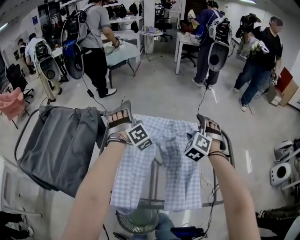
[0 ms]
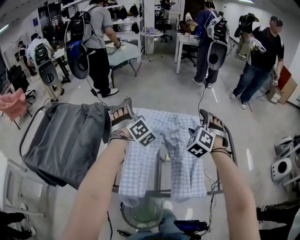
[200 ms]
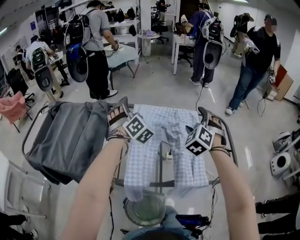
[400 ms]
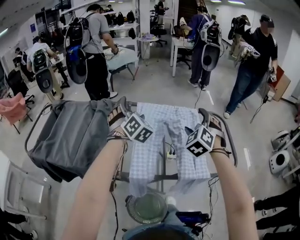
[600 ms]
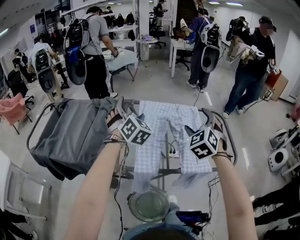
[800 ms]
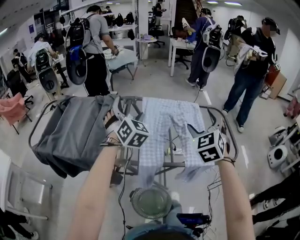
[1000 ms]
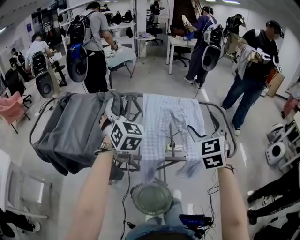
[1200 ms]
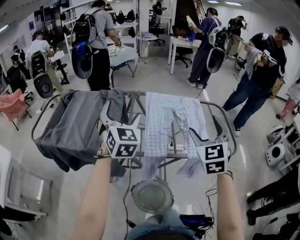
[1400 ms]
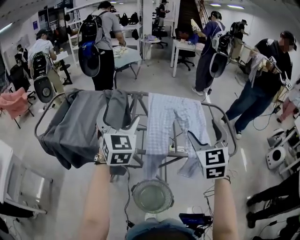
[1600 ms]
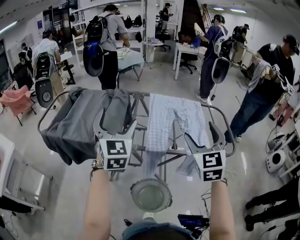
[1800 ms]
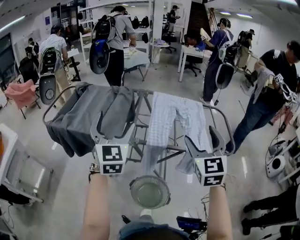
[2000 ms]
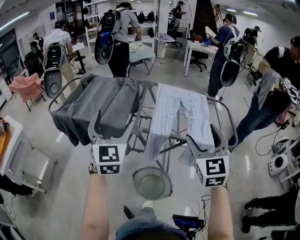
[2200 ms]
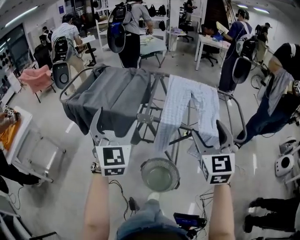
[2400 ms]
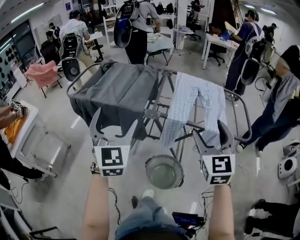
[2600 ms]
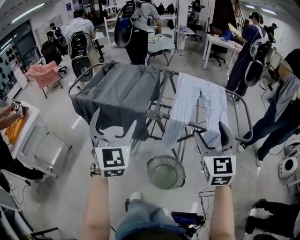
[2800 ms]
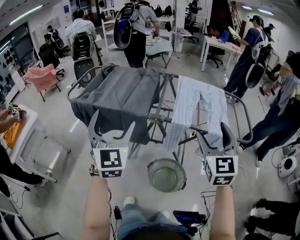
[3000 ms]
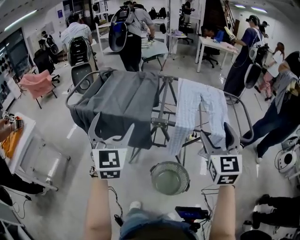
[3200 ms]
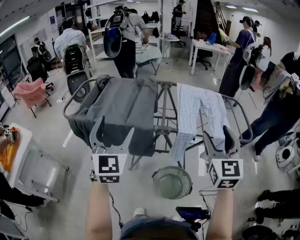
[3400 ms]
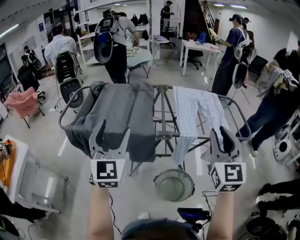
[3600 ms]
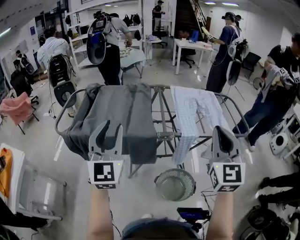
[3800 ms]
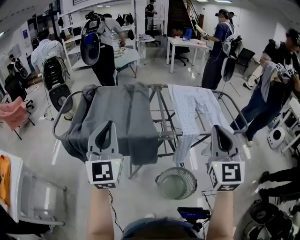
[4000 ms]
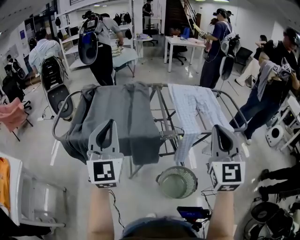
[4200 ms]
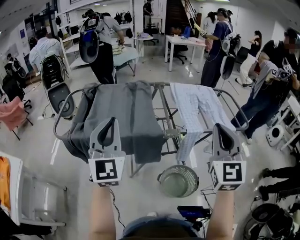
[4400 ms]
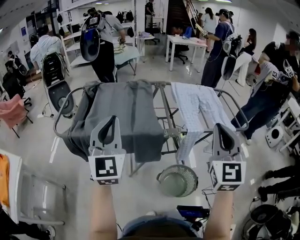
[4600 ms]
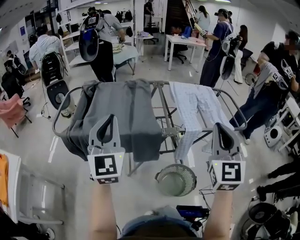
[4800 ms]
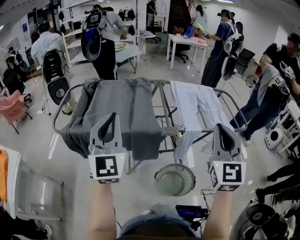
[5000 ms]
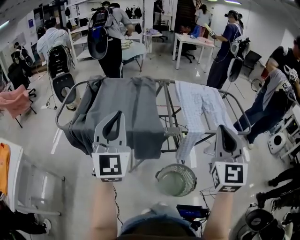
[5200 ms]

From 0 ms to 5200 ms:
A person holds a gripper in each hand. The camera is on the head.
From 0 ms to 1800 ms: The two grippers travel together, backward and to the left, some 40 cm. Both grippers move upward, some 15 cm. The left gripper rotates around the line of its fingers by some 50 degrees, counterclockwise from behind; the right gripper rotates around the line of its fingers by about 40 degrees, clockwise from behind.
From 1800 ms to 3400 ms: Both grippers travel together to the left and backward, about 20 cm.
From 3400 ms to 5200 ms: Both grippers move to the left, approximately 5 cm. The left gripper closes up, while the right gripper closes.

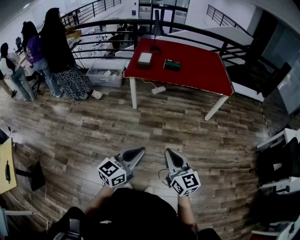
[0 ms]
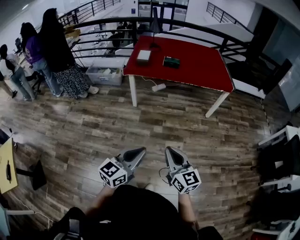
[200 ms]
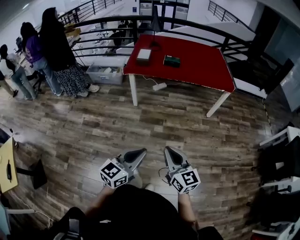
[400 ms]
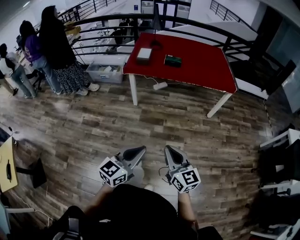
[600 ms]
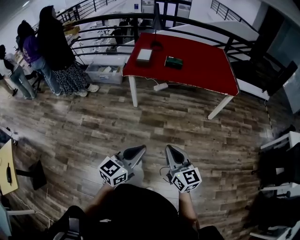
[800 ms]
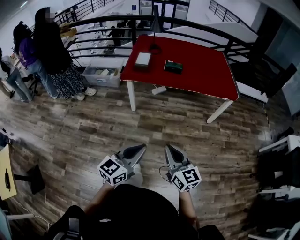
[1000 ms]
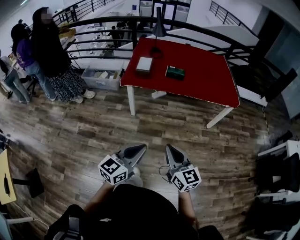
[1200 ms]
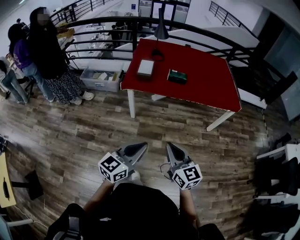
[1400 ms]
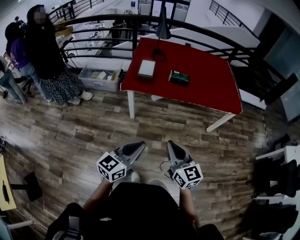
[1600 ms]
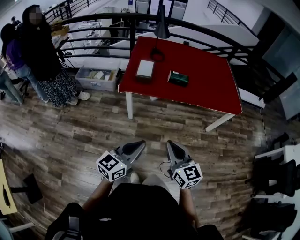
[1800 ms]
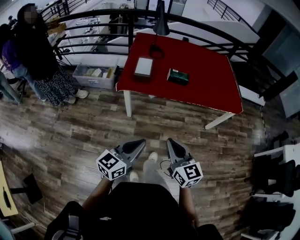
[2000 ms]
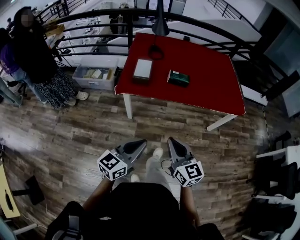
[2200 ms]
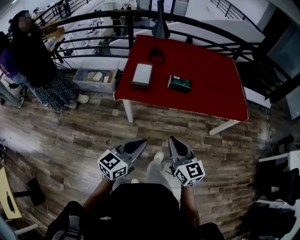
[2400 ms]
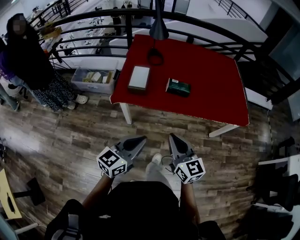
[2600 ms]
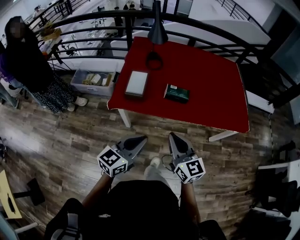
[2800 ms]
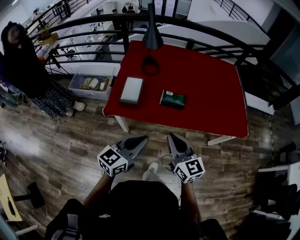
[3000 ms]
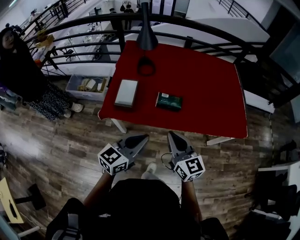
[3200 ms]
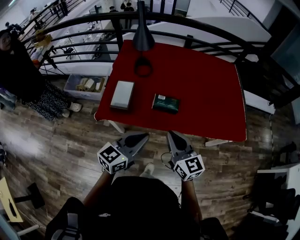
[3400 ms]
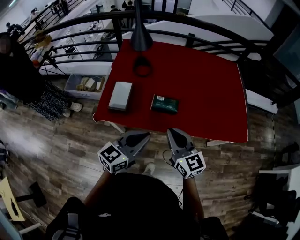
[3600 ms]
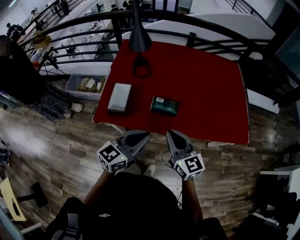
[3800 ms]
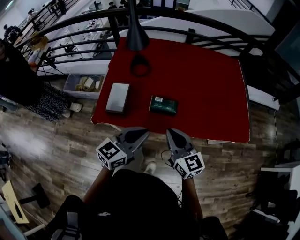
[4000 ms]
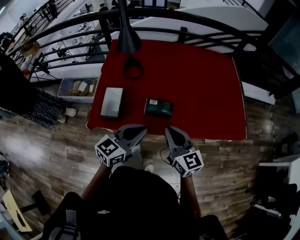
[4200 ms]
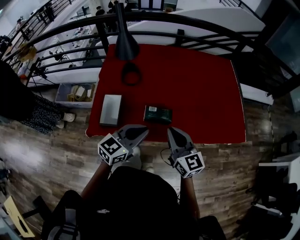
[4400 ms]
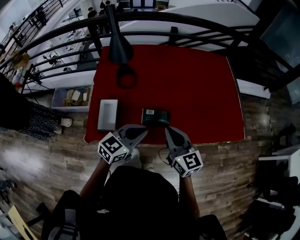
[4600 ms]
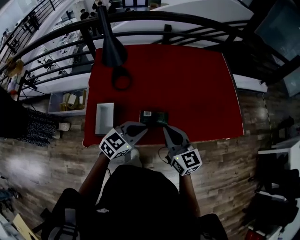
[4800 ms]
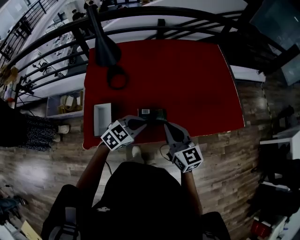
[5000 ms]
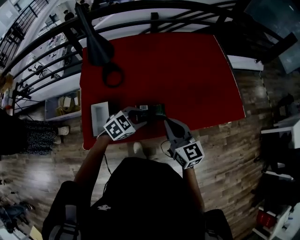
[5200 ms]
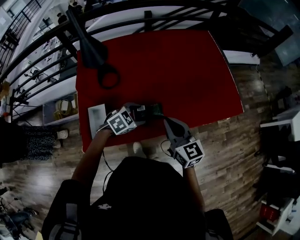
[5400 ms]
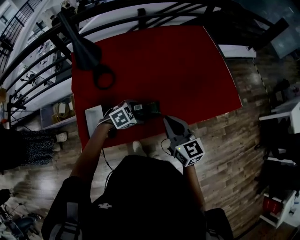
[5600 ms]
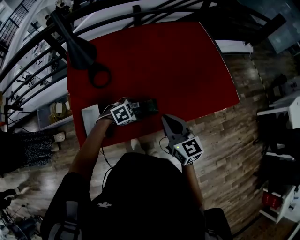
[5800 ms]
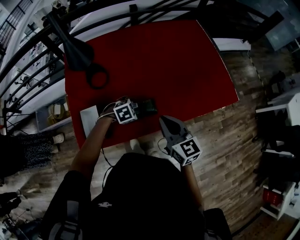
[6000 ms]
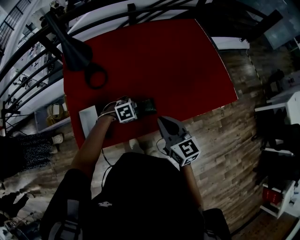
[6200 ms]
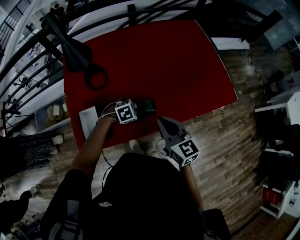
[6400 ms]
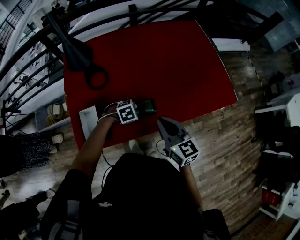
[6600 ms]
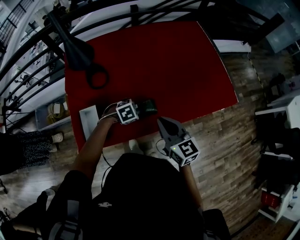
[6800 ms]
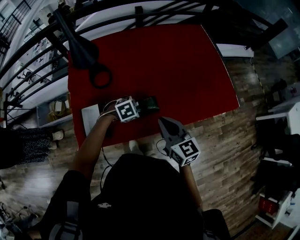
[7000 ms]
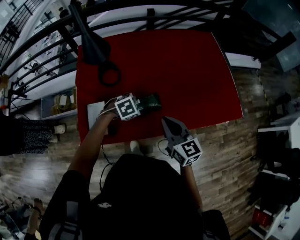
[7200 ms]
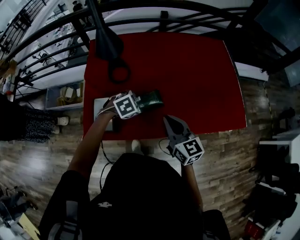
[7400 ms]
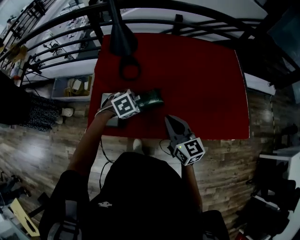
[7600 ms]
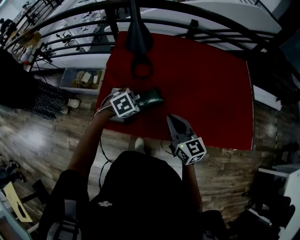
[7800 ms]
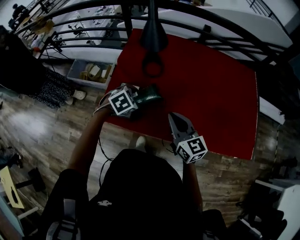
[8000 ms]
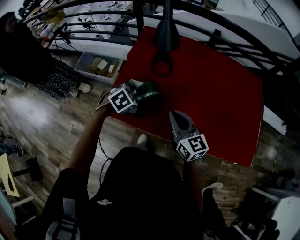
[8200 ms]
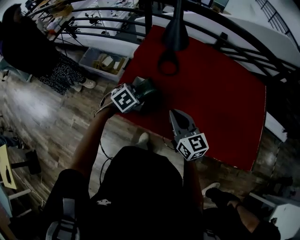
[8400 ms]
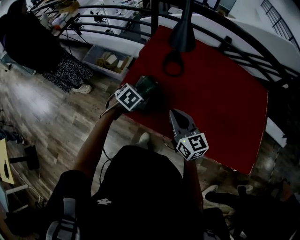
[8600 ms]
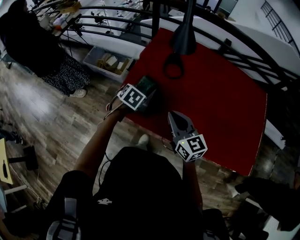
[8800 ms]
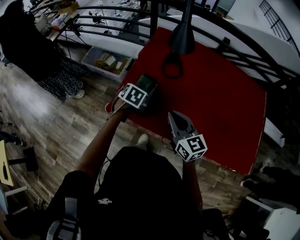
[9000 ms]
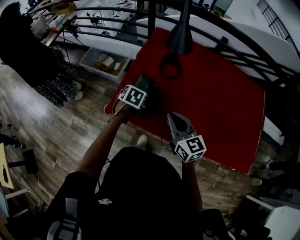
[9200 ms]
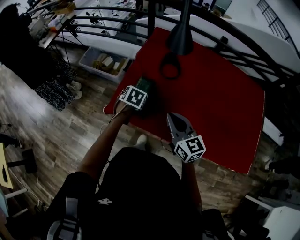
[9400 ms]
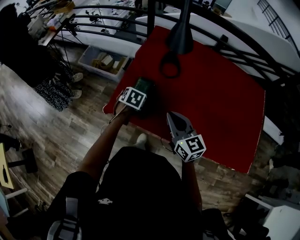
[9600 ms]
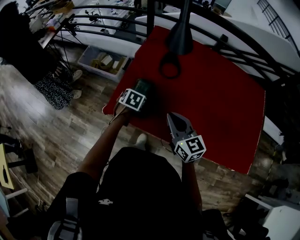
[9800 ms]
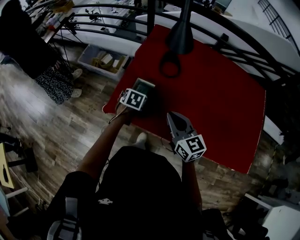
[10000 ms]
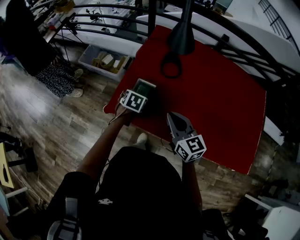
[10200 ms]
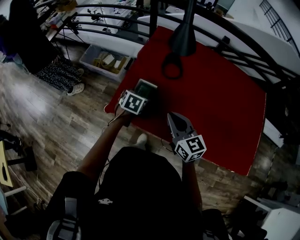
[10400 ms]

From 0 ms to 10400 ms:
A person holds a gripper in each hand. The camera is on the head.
From 0 ms to 1400 ms: The two grippers go about 30 cm forward.
From 1400 ms to 3000 ms: The grippers both shift forward by some 40 cm.
From 3000 ms to 4400 ms: The grippers both shift forward by approximately 20 cm.
From 4400 ms to 6000 ms: The left gripper heads downward, covering about 25 cm, tilts its fingers approximately 50 degrees downward, and opens its fingers. The right gripper ends up roughly 10 cm from where it was.
From 6000 ms to 7400 ms: The left gripper is displaced upward and to the left by about 10 cm.
From 7400 ms to 9000 ms: The right gripper moves roughly 15 cm, and turns by some 30 degrees; the left gripper ends up approximately 25 cm from where it was, and rotates around the line of its fingers by roughly 60 degrees, counterclockwise from behind.
From 9000 ms to 10400 ms: The grippers make only small movements.

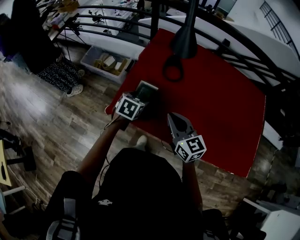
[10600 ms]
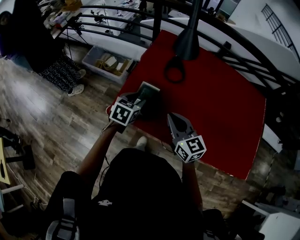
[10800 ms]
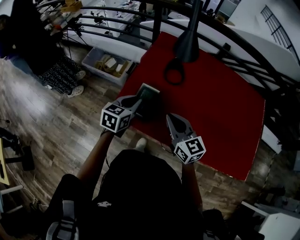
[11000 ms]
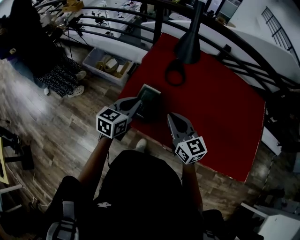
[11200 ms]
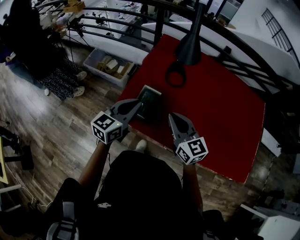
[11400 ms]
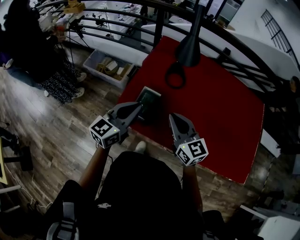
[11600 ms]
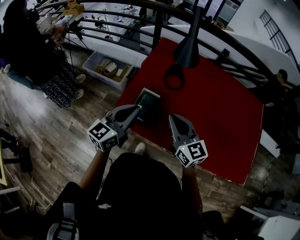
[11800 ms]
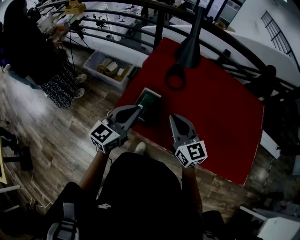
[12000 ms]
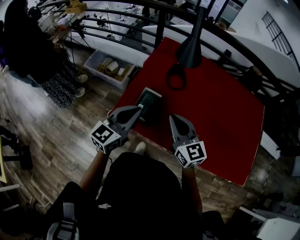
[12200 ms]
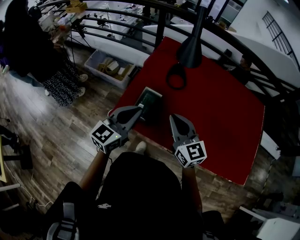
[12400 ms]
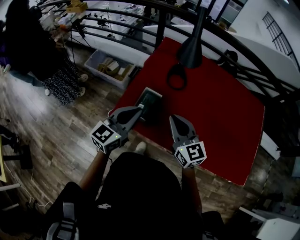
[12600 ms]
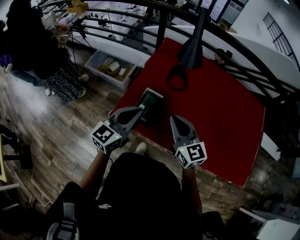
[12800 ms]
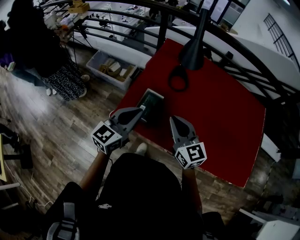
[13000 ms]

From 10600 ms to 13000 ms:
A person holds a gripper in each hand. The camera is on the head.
From 10600 ms to 11800 ms: The right gripper goes about 5 cm upward, while the left gripper shifts about 20 cm upward, points its fingers some 50 degrees further upward, and closes.
From 11800 ms to 13000 ms: The grippers stay close to where they were, moving slightly.

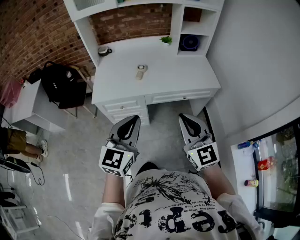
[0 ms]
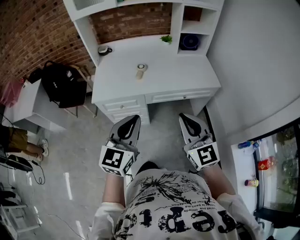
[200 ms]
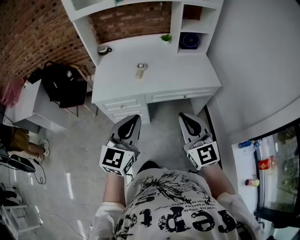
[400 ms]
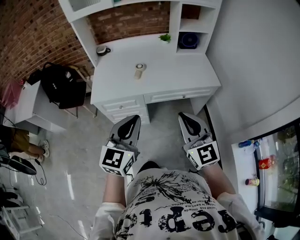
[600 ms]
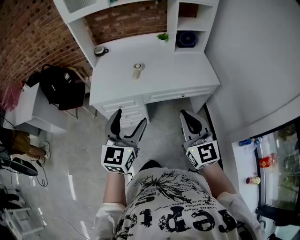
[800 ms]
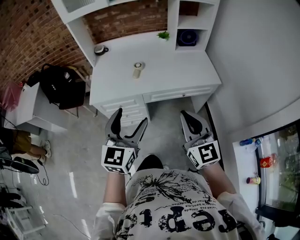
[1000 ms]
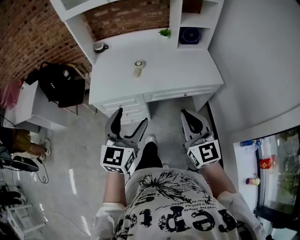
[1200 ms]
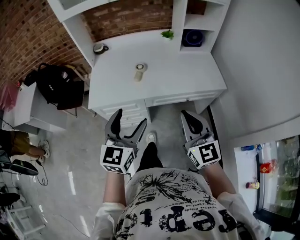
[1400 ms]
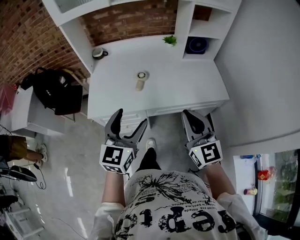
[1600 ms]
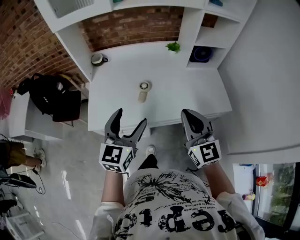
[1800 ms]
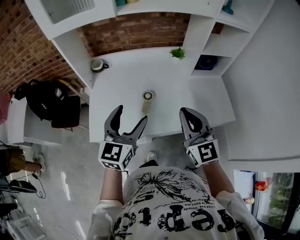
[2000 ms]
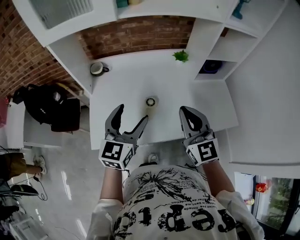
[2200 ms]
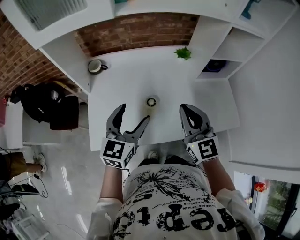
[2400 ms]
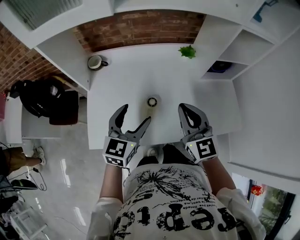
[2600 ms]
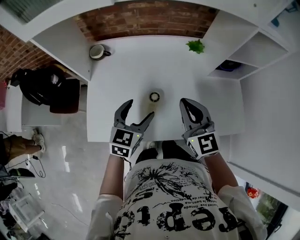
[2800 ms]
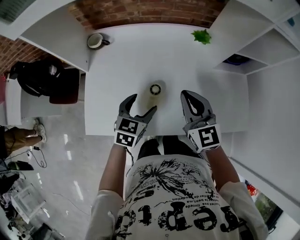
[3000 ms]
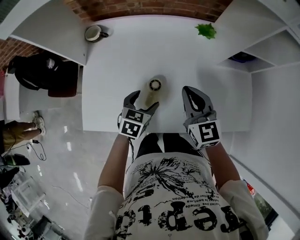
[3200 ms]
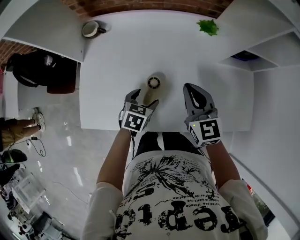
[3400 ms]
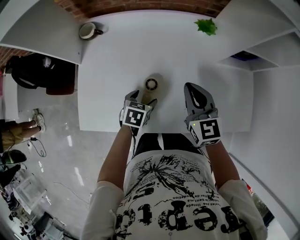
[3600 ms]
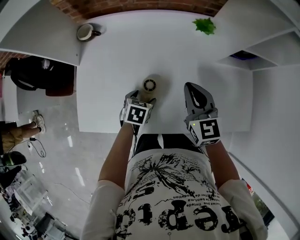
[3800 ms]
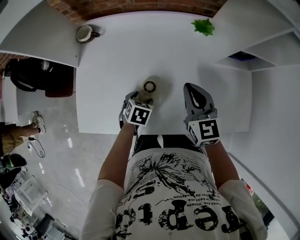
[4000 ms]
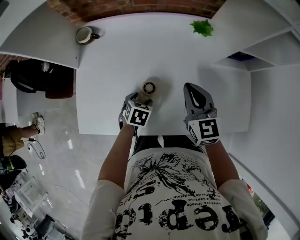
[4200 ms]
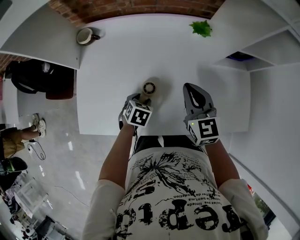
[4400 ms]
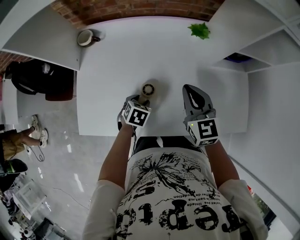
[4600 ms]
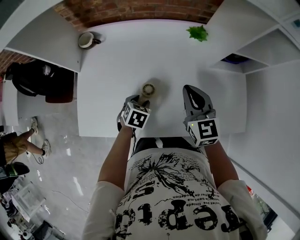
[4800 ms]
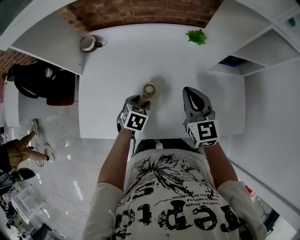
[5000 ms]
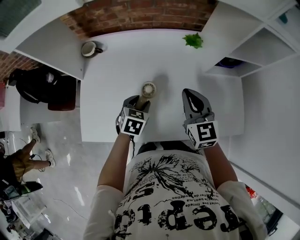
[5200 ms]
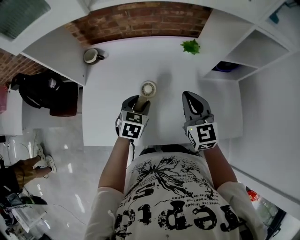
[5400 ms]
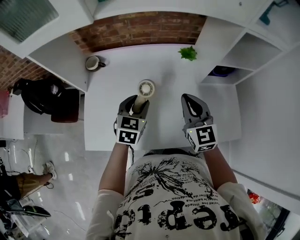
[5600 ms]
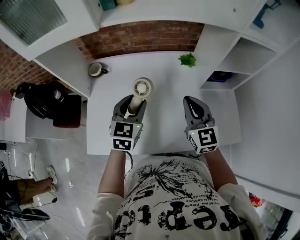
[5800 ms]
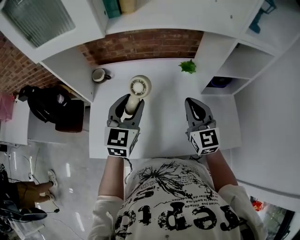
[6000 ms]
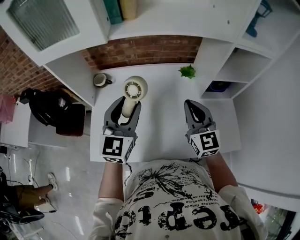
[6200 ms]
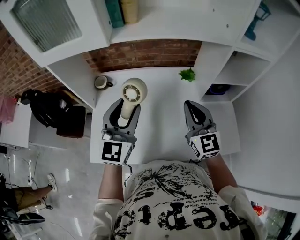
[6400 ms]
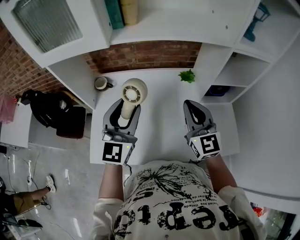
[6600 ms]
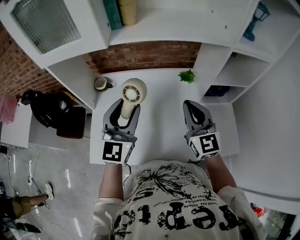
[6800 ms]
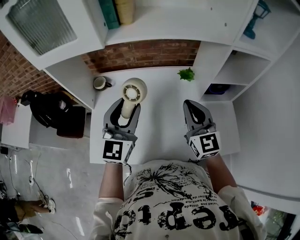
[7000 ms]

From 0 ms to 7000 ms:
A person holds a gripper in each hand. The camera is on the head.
From 0 ms to 1400 ms: Both grippers travel together forward, roughly 10 cm. The left gripper opens its fingers.
From 1400 ms to 2800 ms: The two grippers travel together, forward, roughly 40 cm.
From 2800 ms to 4200 ms: The left gripper moves downward, roughly 20 cm, and tilts its fingers some 40 degrees downward. Meanwhile the right gripper travels downward, forward and to the right by some 15 cm.
From 4200 ms to 5600 ms: The left gripper moves upward, roughly 20 cm, and points its fingers about 30 degrees further upward; the right gripper is displaced upward by about 10 cm.
From 5600 ms to 7000 ms: The left gripper travels upward by roughly 20 cm, and tips its fingers upward by roughly 30 degrees; the right gripper goes about 10 cm upward.
